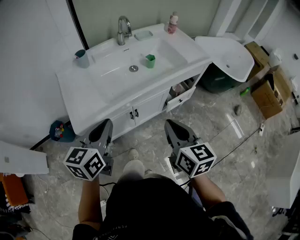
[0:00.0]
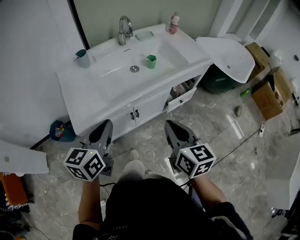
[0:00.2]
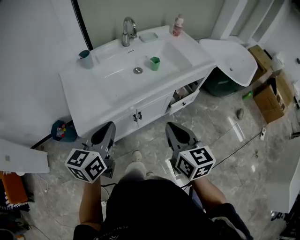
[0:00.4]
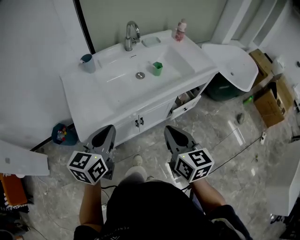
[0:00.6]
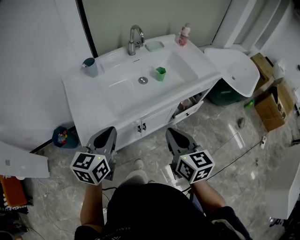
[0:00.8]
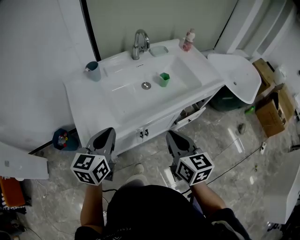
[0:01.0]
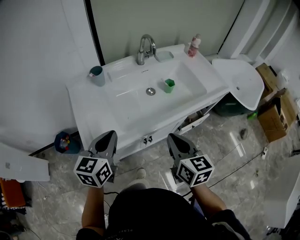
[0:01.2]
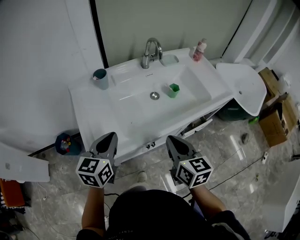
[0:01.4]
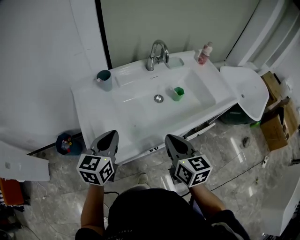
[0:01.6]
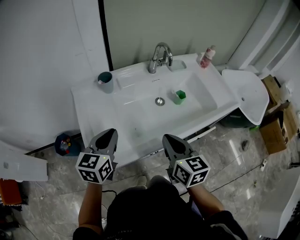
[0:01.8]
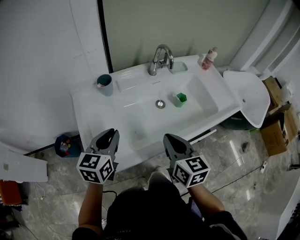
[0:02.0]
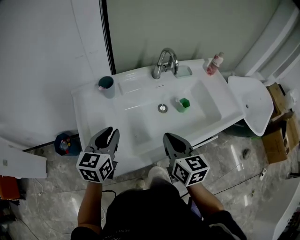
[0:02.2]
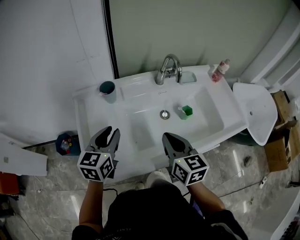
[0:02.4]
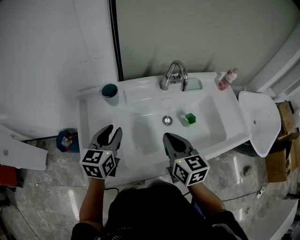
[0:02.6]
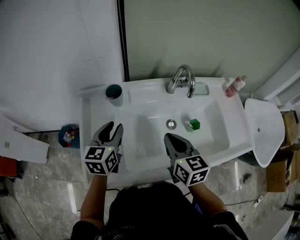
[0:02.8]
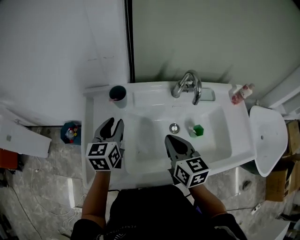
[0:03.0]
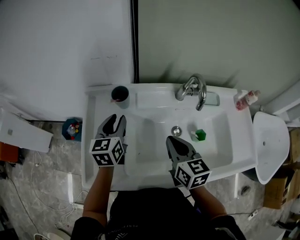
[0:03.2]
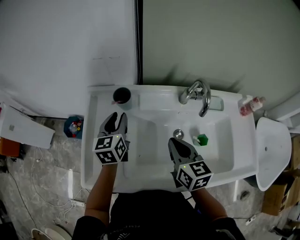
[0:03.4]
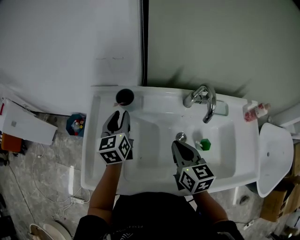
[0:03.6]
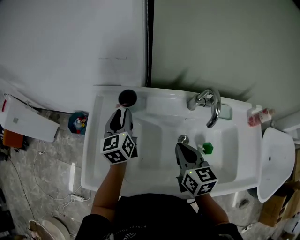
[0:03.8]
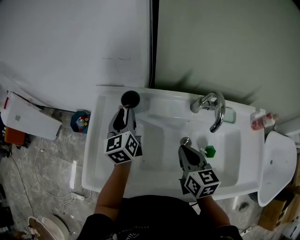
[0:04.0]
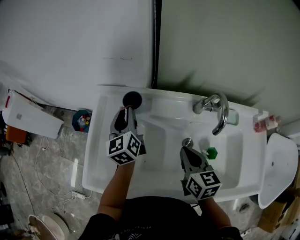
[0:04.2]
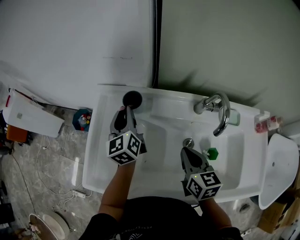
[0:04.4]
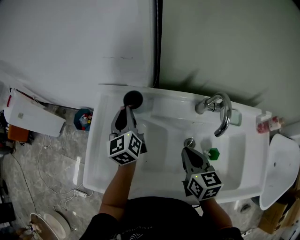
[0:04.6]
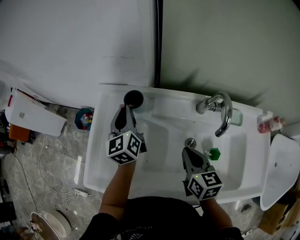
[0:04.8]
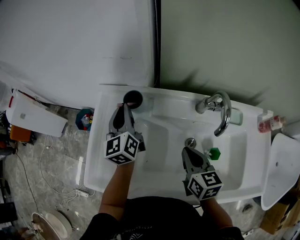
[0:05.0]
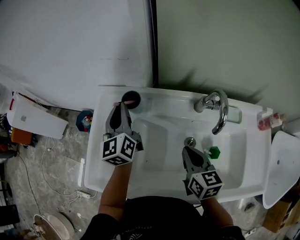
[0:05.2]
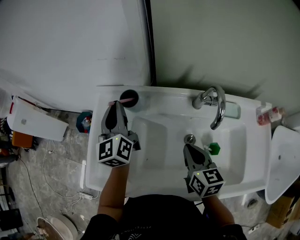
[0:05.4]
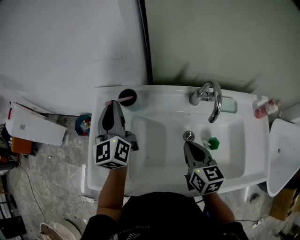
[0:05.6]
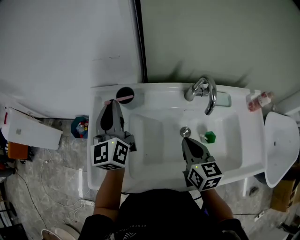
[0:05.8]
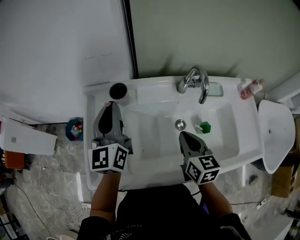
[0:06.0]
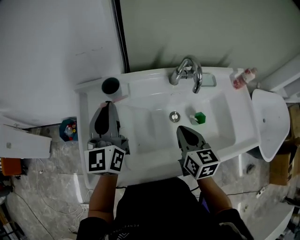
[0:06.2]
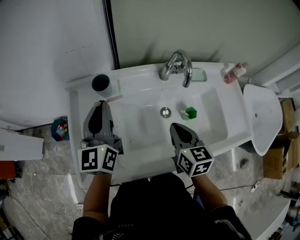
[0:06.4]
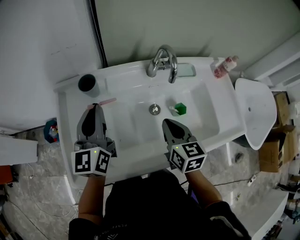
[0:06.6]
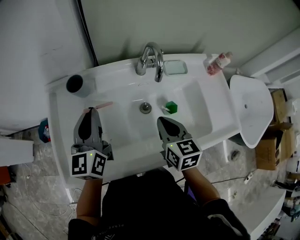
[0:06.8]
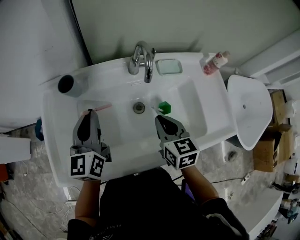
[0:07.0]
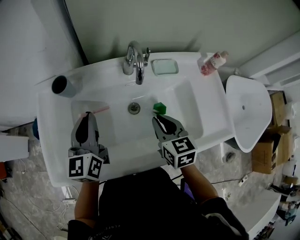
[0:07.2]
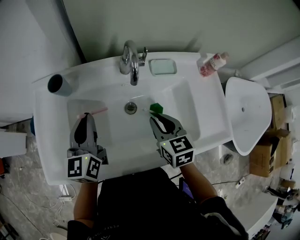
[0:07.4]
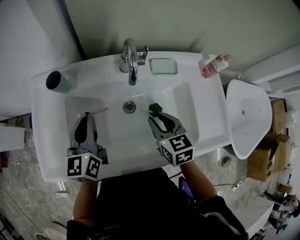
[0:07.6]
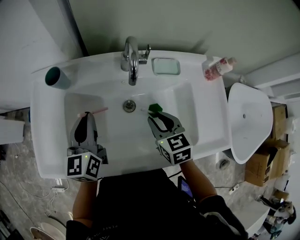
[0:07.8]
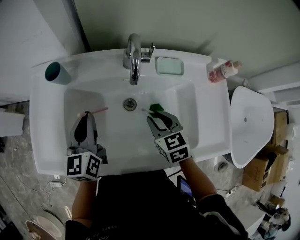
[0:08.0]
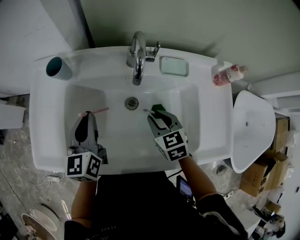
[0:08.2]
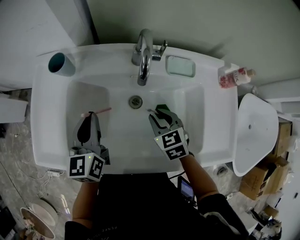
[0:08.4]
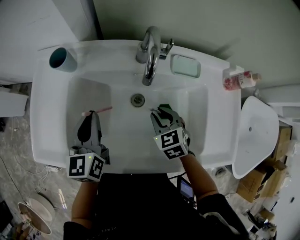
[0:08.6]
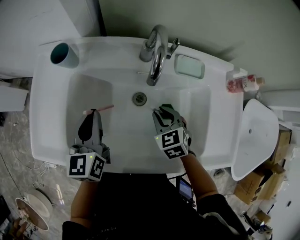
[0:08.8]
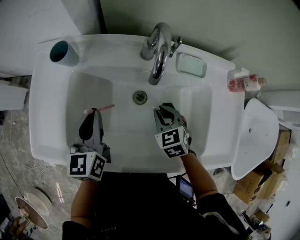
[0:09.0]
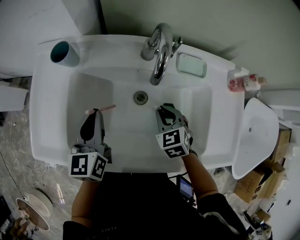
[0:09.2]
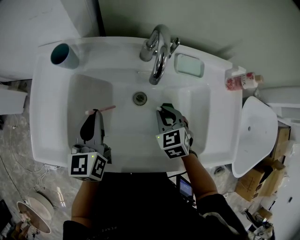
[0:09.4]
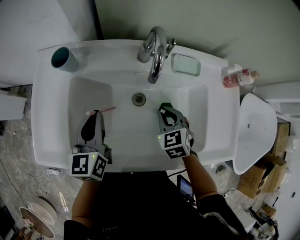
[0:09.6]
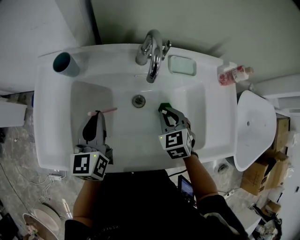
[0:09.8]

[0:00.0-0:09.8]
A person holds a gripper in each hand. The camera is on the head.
0:00.0 to 0:01.4: Both grippers move forward and to the left, some 15 cm.
0:01.4 to 0:02.8: The grippers both shift forward by approximately 20 cm. The left gripper turns by about 20 degrees, and opens up.
0:02.8 to 0:04.2: The right gripper shifts approximately 5 cm forward. The left gripper travels forward by approximately 10 cm, and rotates about 40 degrees.
0:04.2 to 0:05.6: The left gripper is displaced upward by approximately 10 cm, and closes.
0:05.6 to 0:07.0: The left gripper goes roughly 15 cm to the right and backward, and changes its angle by roughly 20 degrees; the right gripper shifts approximately 10 cm to the right.
0:07.0 to 0:08.4: The two grippers go roughly 10 cm downward. The right gripper changes its angle by approximately 30 degrees, and opens.
0:08.4 to 0:09.8: There are only small adjustments of the grippers.

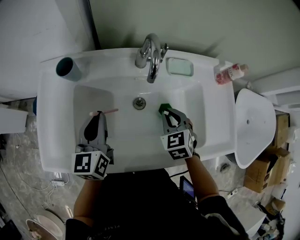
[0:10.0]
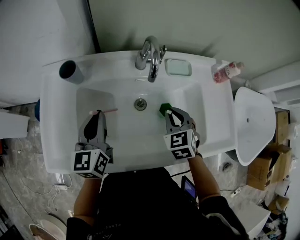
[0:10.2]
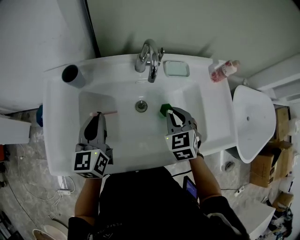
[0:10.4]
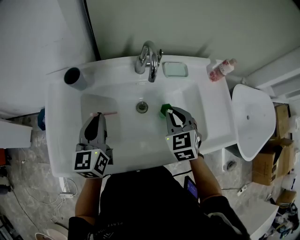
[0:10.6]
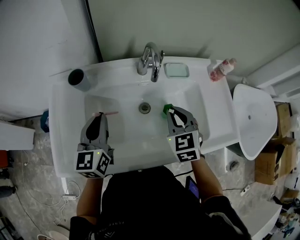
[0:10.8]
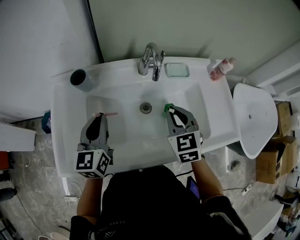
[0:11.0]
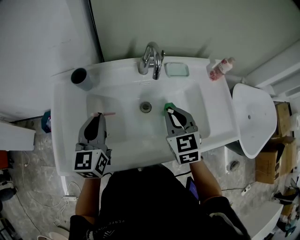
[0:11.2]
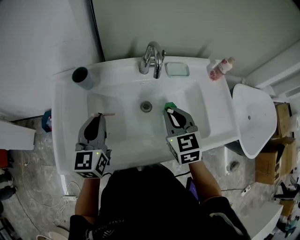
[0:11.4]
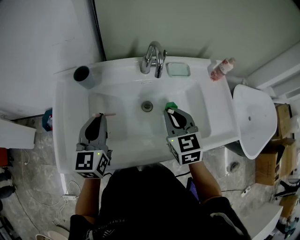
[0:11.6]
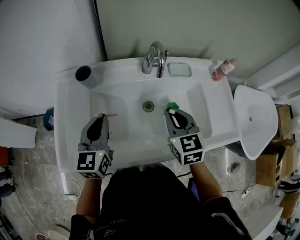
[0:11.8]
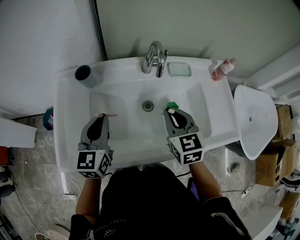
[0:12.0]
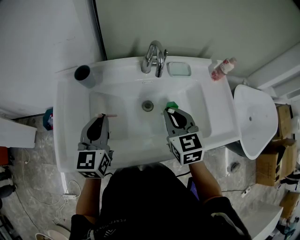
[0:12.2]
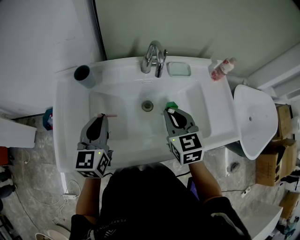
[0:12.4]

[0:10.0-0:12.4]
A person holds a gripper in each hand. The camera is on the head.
0:10.0 to 0:11.2: The left gripper ends up about 5 cm from where it was. Meanwhile the right gripper moves upward, roughly 10 cm.
0:11.2 to 0:12.4: The grippers move only a little.

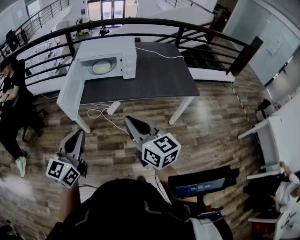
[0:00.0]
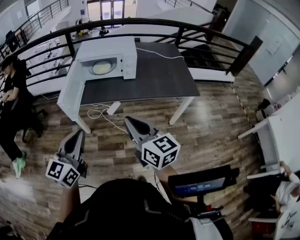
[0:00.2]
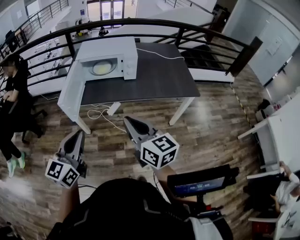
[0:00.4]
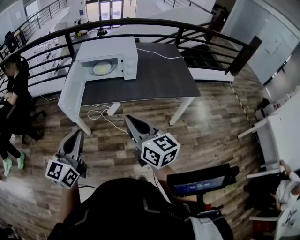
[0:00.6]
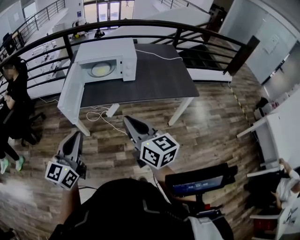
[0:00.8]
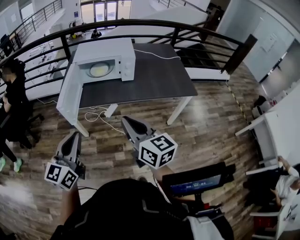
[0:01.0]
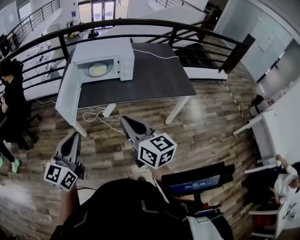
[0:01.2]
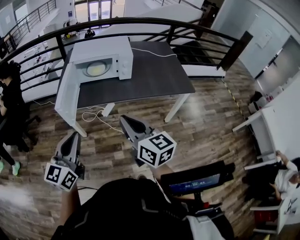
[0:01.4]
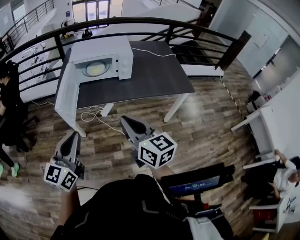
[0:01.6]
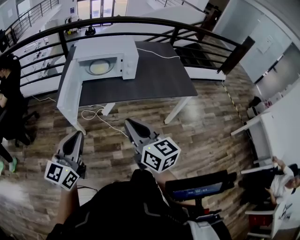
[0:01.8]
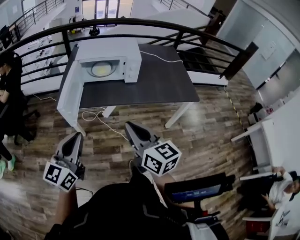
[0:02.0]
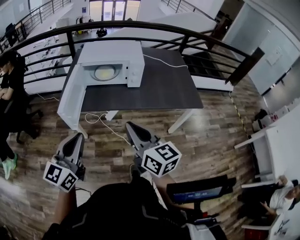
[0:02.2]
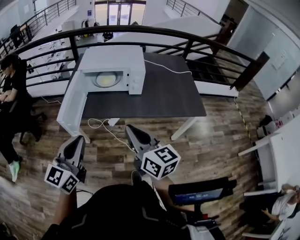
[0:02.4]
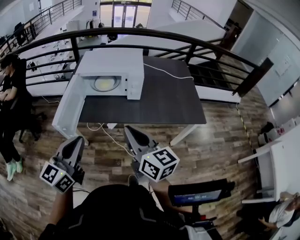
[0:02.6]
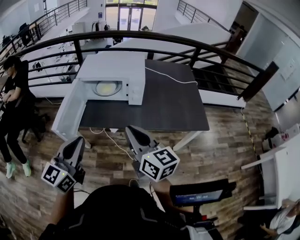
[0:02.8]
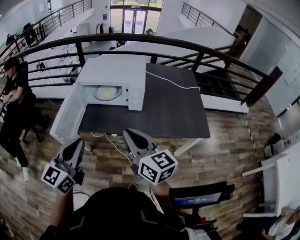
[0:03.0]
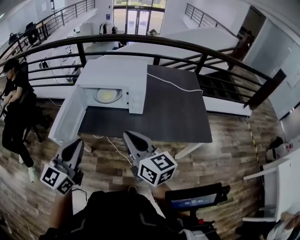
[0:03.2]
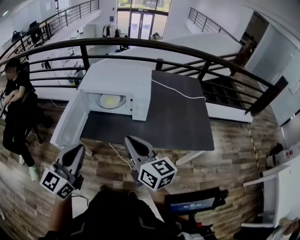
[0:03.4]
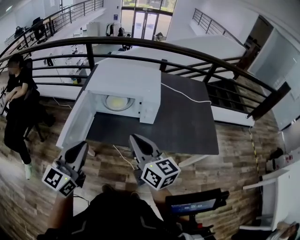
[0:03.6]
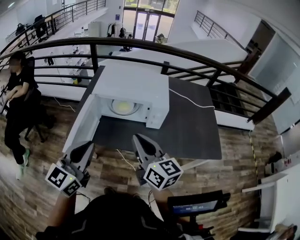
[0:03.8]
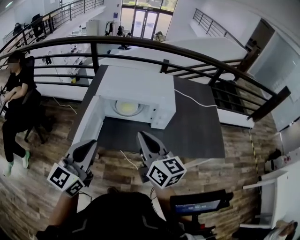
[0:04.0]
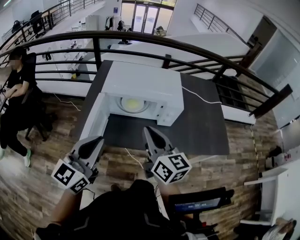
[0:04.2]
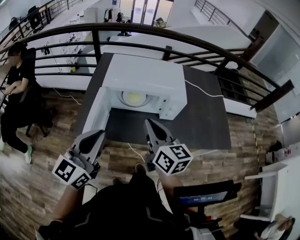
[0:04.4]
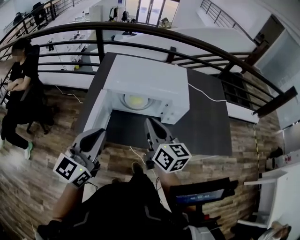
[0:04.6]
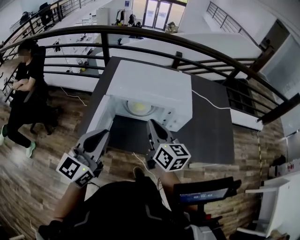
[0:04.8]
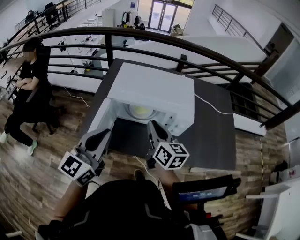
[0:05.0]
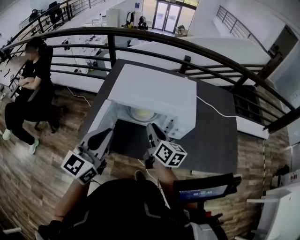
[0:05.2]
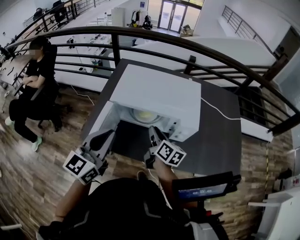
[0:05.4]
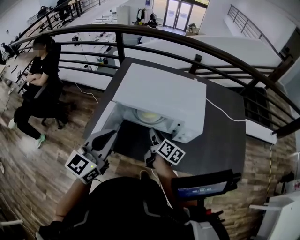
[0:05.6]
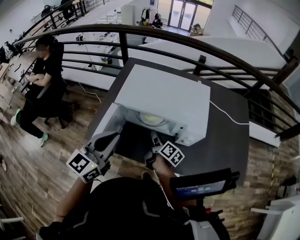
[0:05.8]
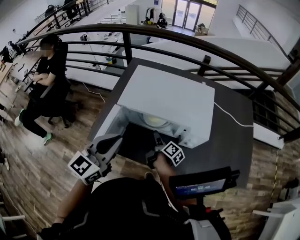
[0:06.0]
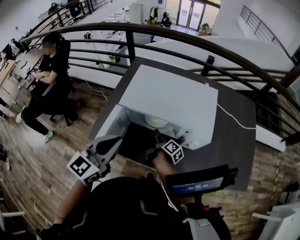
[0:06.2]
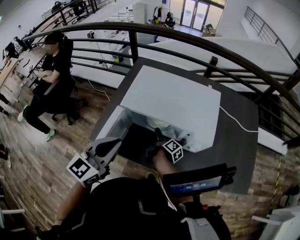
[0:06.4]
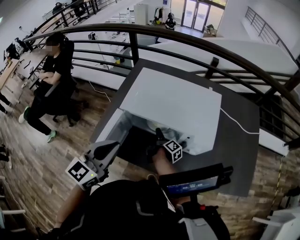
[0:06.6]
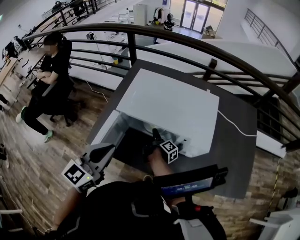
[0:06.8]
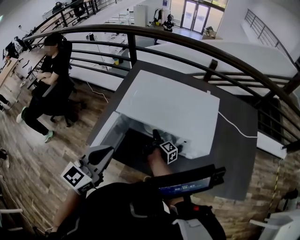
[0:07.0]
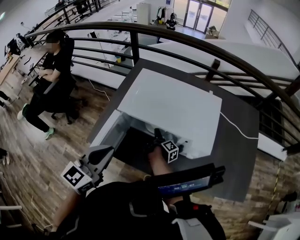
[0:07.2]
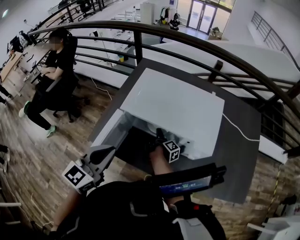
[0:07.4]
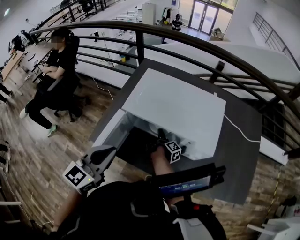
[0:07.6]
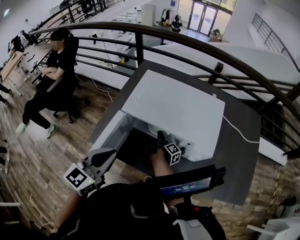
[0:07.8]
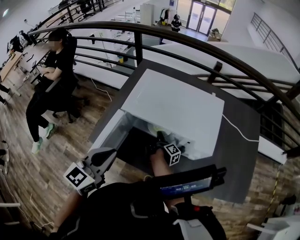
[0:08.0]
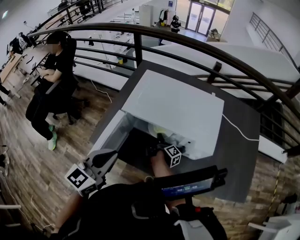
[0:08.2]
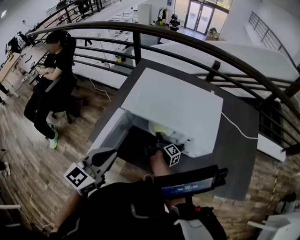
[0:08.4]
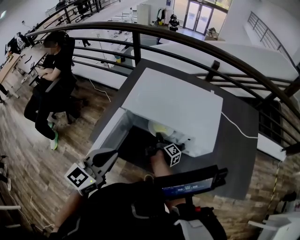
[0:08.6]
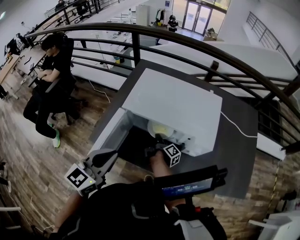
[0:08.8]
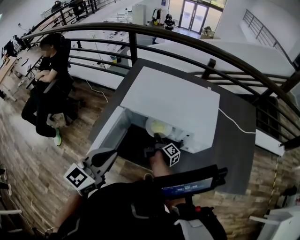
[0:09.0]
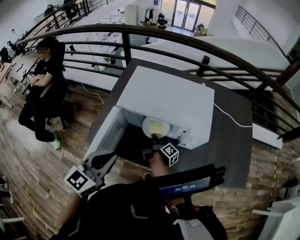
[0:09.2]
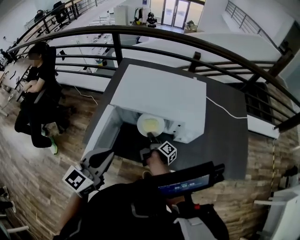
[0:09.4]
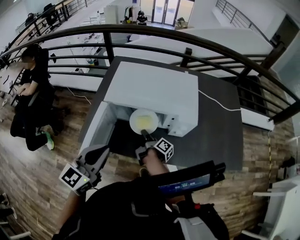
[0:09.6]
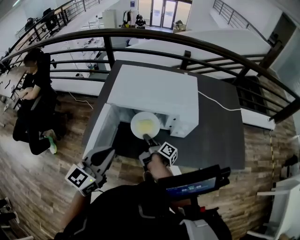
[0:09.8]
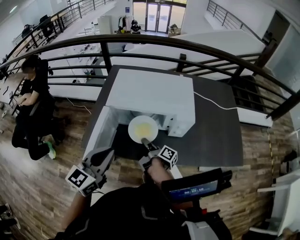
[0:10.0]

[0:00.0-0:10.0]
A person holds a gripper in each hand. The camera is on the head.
0:00.0 to 0:01.4: The right gripper shifts by roughly 5 cm; the left gripper shifts some 5 cm to the left.
0:01.4 to 0:02.8: The grippers both shift forward and to the right by roughly 15 cm.
0:02.8 to 0:04.2: Both grippers move forward and to the left, about 20 cm.
0:04.2 to 0:05.8: The left gripper heads forward, covering about 15 cm. The right gripper goes about 35 cm downward and forward, twists roughly 50 degrees clockwise, seen from behind, and opens up.
0:05.8 to 0:07.2: The right gripper moves downward and forward, about 10 cm, and rotates approximately 40 degrees.
0:07.2 to 0:08.6: The right gripper closes up.
0:08.6 to 0:10.0: The right gripper travels backward and upward by some 15 cm. The left gripper heads backward, covering some 5 cm.

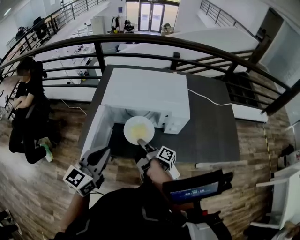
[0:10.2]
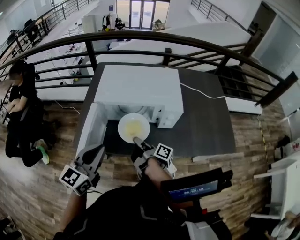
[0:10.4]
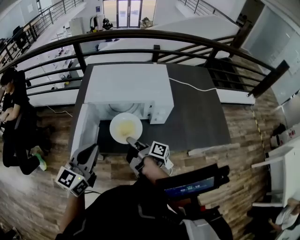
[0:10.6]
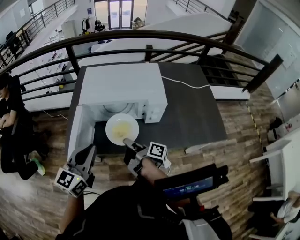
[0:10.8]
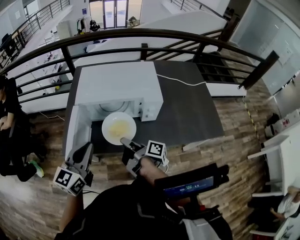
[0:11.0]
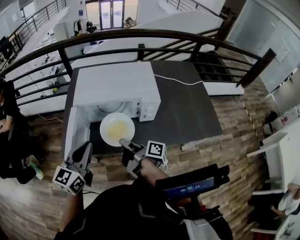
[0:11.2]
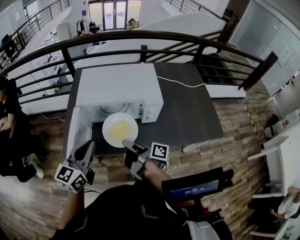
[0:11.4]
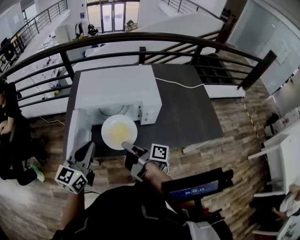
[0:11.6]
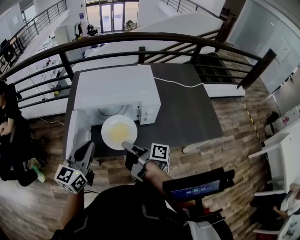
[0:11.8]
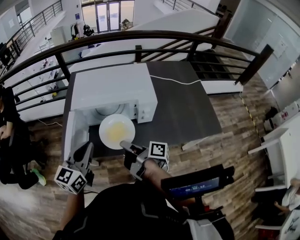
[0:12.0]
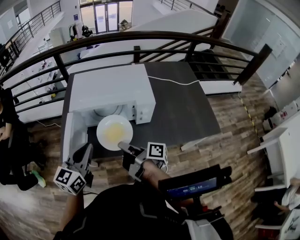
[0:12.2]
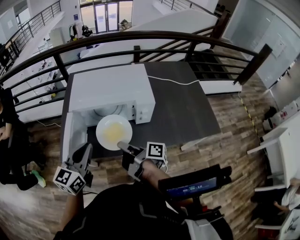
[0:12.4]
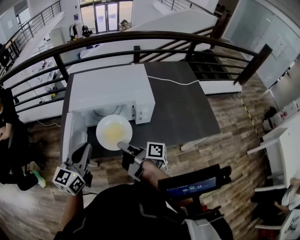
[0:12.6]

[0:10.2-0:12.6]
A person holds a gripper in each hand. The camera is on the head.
0:10.2 to 0:11.4: The right gripper travels upward and backward by roughly 10 cm.
0:11.4 to 0:12.6: The grippers stay close to where they were, moving slightly.
